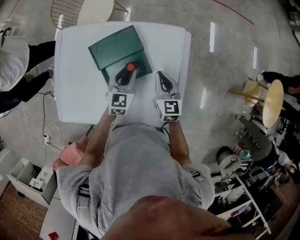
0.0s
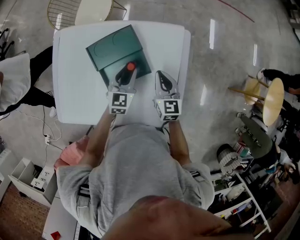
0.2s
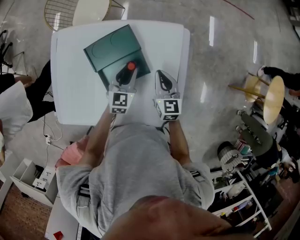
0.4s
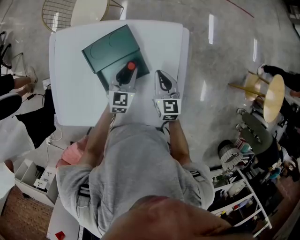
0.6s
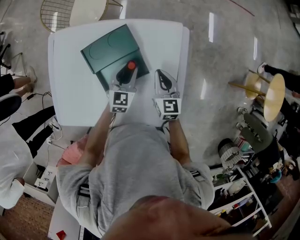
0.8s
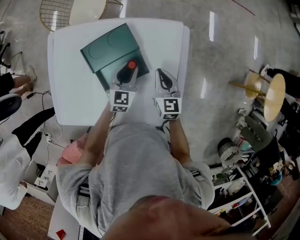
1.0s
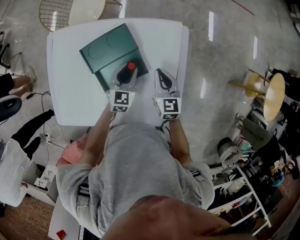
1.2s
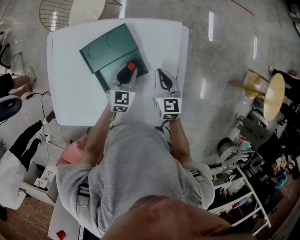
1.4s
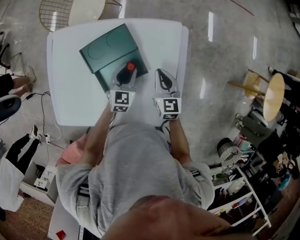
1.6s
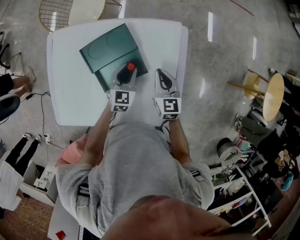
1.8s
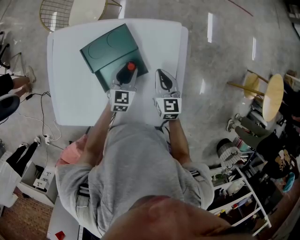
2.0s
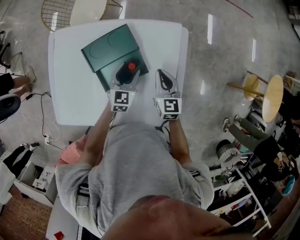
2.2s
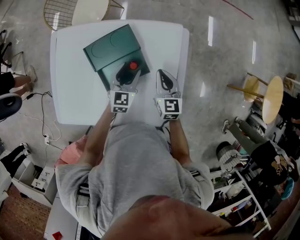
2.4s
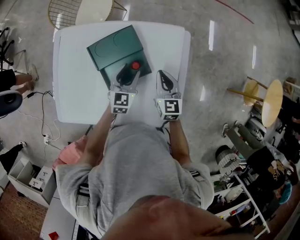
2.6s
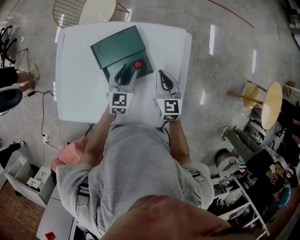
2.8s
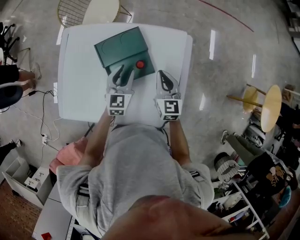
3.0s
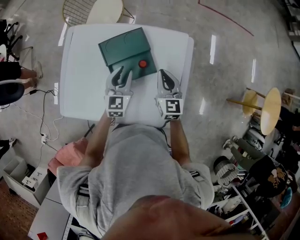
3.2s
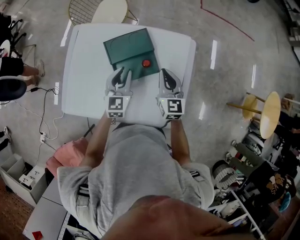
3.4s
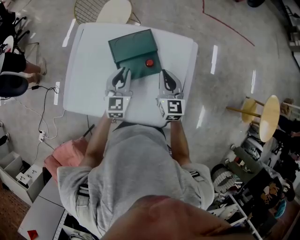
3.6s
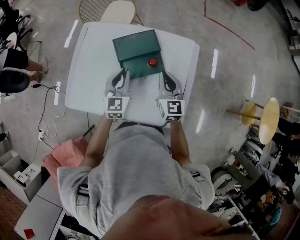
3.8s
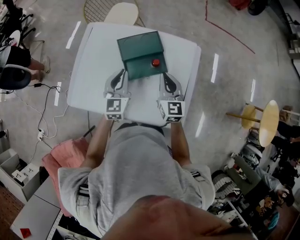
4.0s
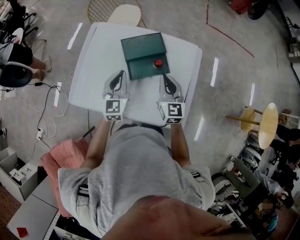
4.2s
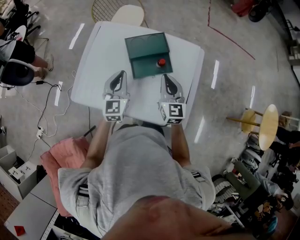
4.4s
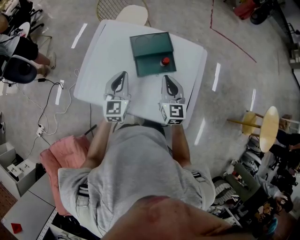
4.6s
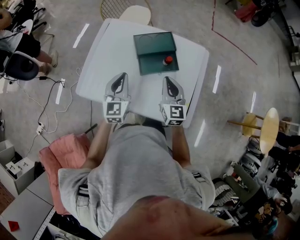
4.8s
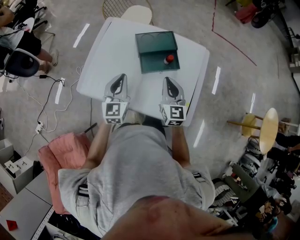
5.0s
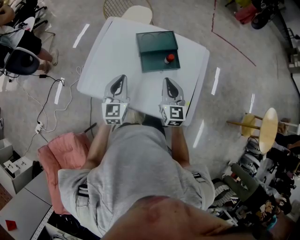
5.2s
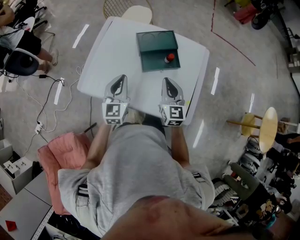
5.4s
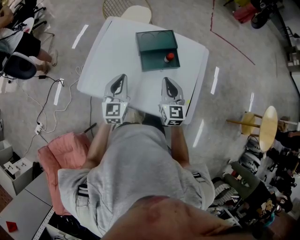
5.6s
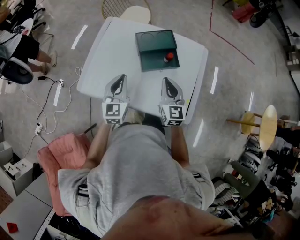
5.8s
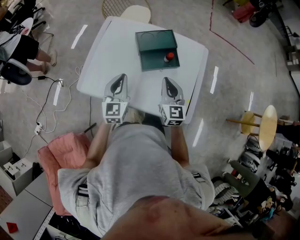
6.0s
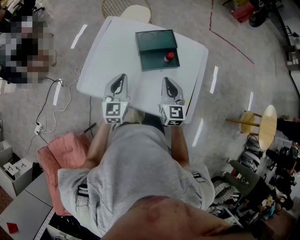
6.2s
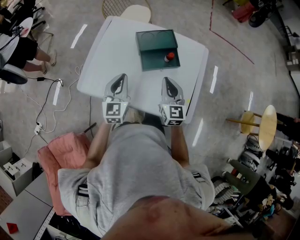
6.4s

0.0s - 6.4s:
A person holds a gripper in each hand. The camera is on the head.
0.0s - 1.6s: The left gripper shifts about 5 cm downward.
1.6s - 3.2s: The left gripper shifts some 15 cm upward, to the left and backward, and opens and closes again; the right gripper moves upward, approximately 5 cm.
3.2s - 4.8s: The left gripper heads to the left, backward and upward, covering about 25 cm, and closes. The right gripper heads backward and to the left, covering about 15 cm.
4.8s - 6.4s: There are only small adjustments of the grippers.

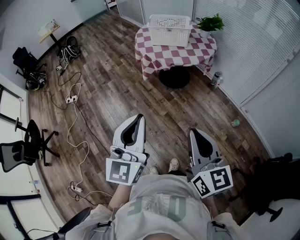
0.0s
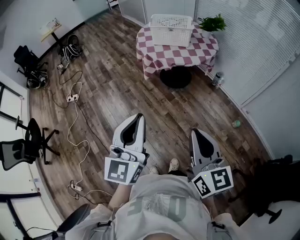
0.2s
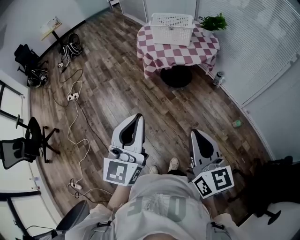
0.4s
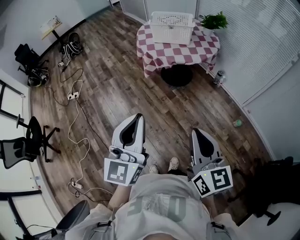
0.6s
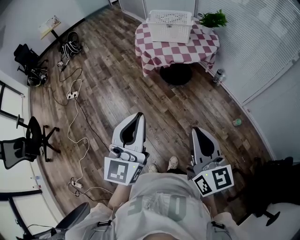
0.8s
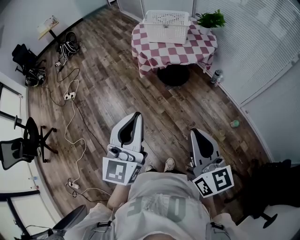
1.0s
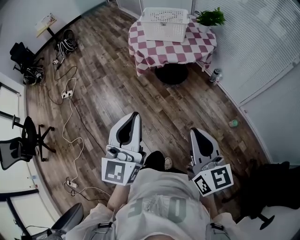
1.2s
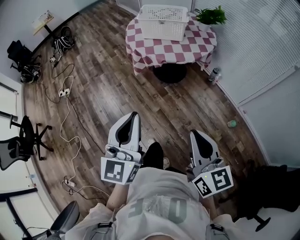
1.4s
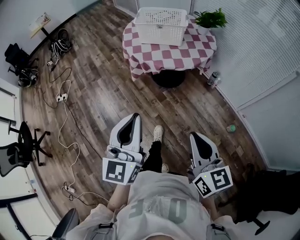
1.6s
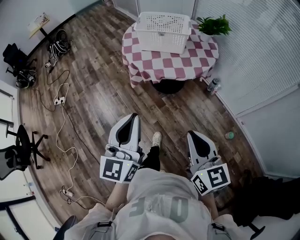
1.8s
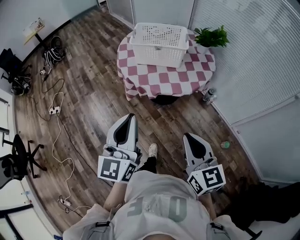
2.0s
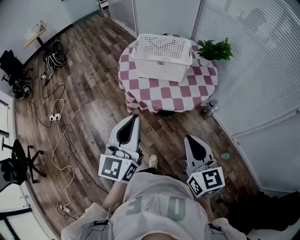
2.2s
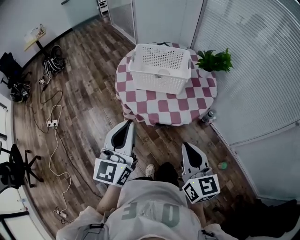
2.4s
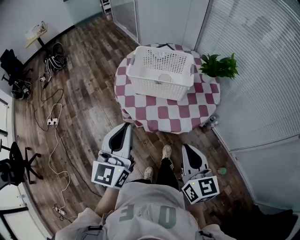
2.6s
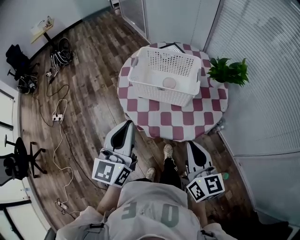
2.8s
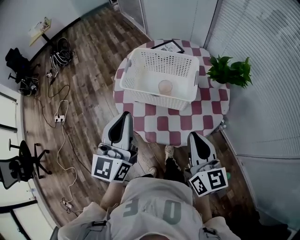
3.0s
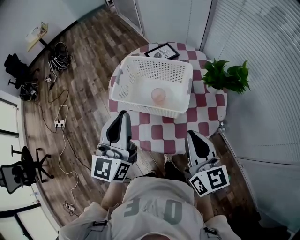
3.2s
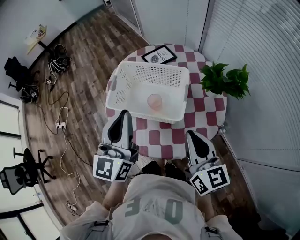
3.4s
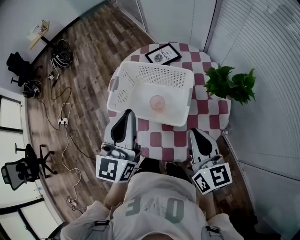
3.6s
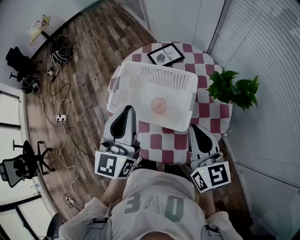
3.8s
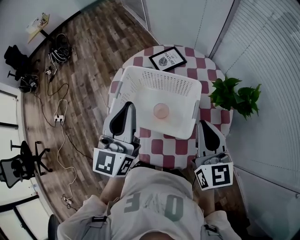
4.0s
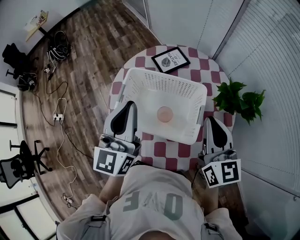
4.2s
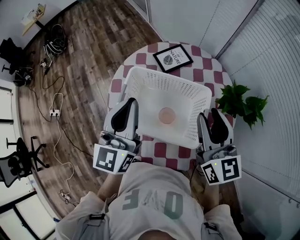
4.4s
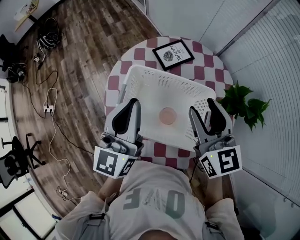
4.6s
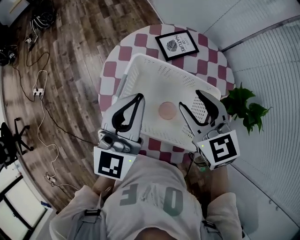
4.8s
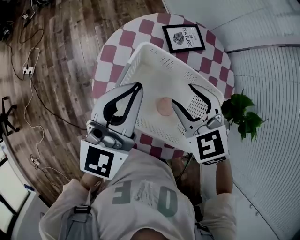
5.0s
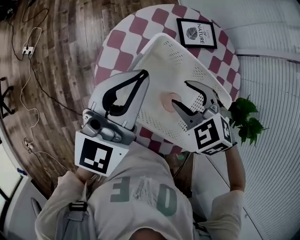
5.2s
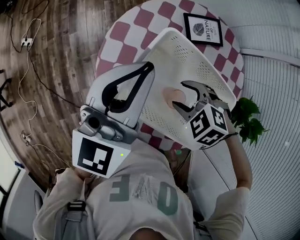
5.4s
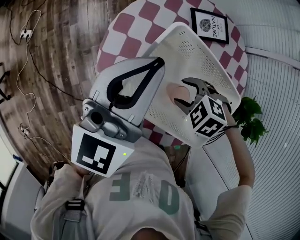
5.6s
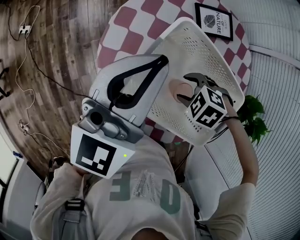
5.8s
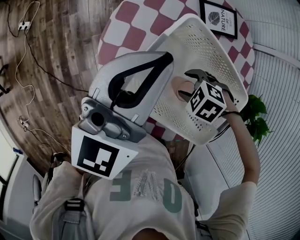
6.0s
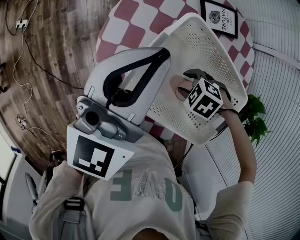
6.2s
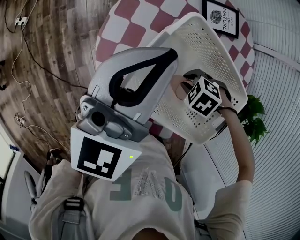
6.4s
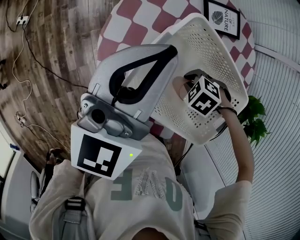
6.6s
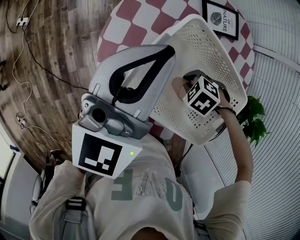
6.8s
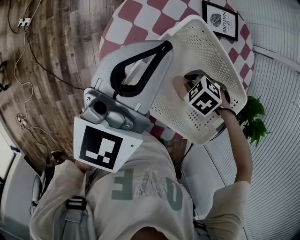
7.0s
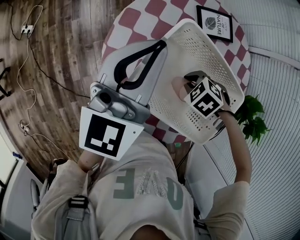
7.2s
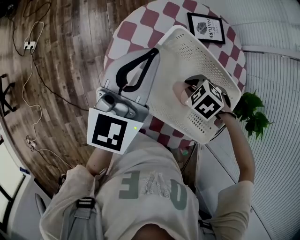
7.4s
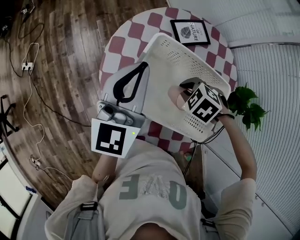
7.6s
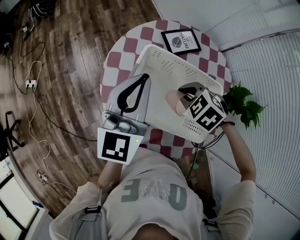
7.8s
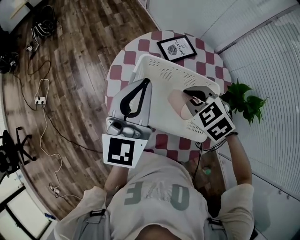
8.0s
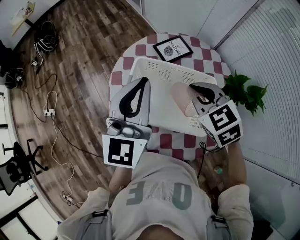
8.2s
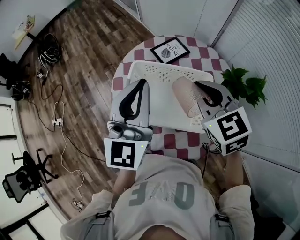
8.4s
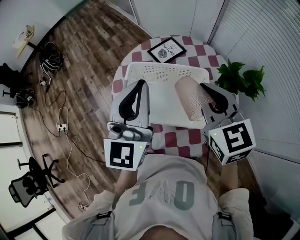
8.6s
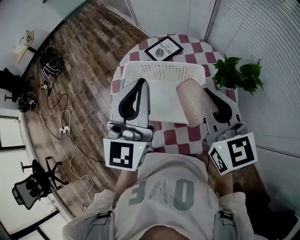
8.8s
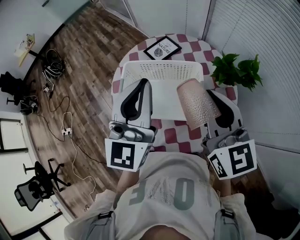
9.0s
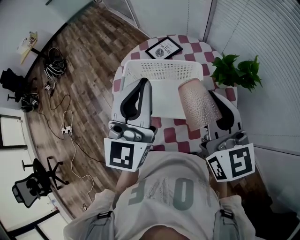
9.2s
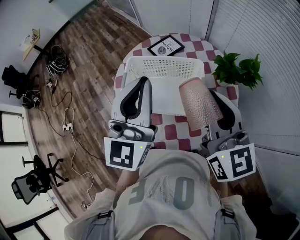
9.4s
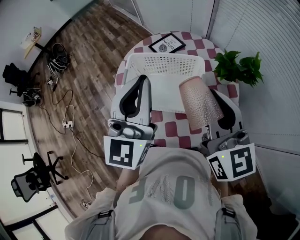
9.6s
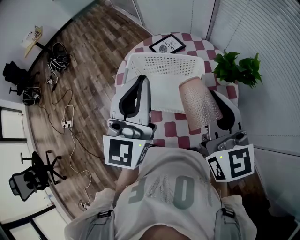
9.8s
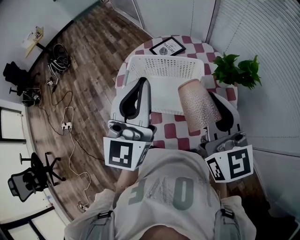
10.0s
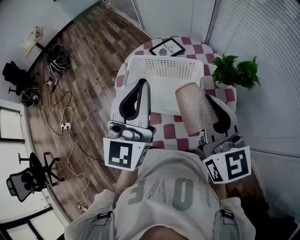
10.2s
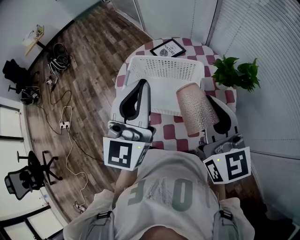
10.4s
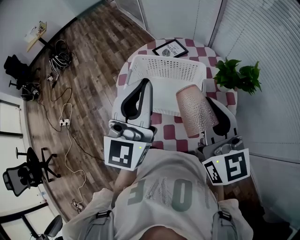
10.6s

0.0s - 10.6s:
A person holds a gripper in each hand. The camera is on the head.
0.0s - 1.6s: The left gripper moves forward and to the right, some 15 cm. Meanwhile the right gripper moves forward, to the right and downward, approximately 20 cm.
1.6s - 3.0s: The two grippers travel together, forward, approximately 50 cm.
3.0s - 4.6s: Both grippers move forward, approximately 30 cm. The right gripper opens its fingers.
4.6s - 6.0s: The left gripper ends up some 10 cm from where it was. The right gripper shifts some 30 cm downward, and tips its fingers downward by roughly 70 degrees.
6.0s - 7.6s: The right gripper travels upward by about 5 cm, turns by approximately 20 degrees, and closes up.
7.6s - 9.0s: The left gripper ends up approximately 25 cm from where it was, and turns by approximately 20 degrees; the right gripper moves upward, about 30 cm, and angles its fingers upward, by roughly 70 degrees.
9.0s - 10.6s: Both grippers travel together backward, approximately 5 cm.

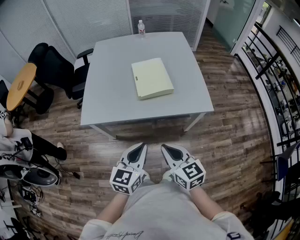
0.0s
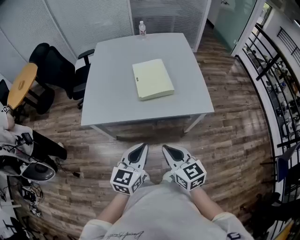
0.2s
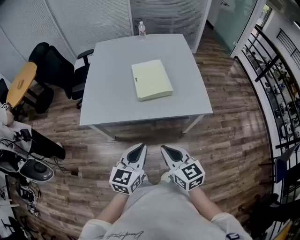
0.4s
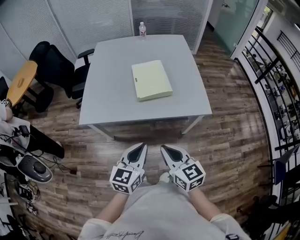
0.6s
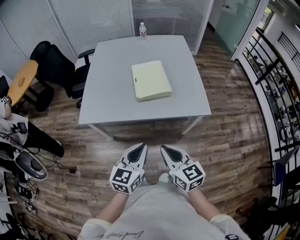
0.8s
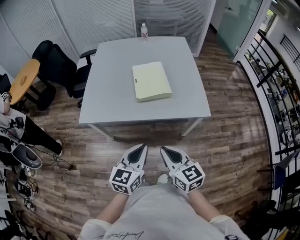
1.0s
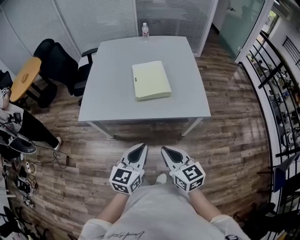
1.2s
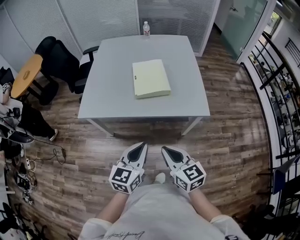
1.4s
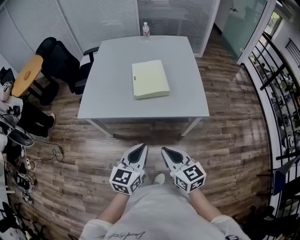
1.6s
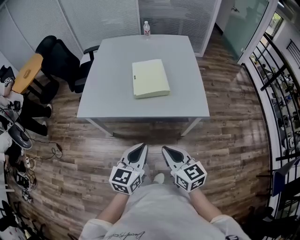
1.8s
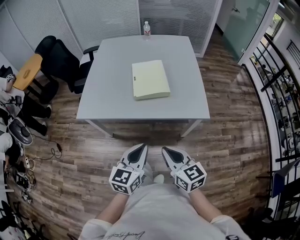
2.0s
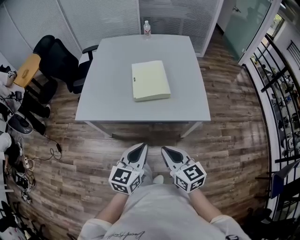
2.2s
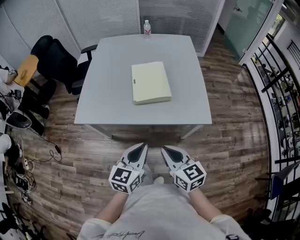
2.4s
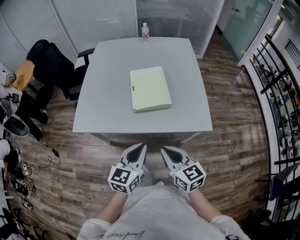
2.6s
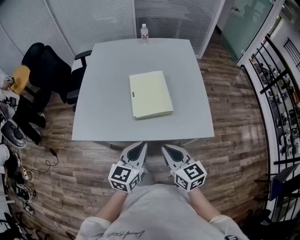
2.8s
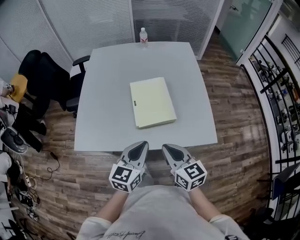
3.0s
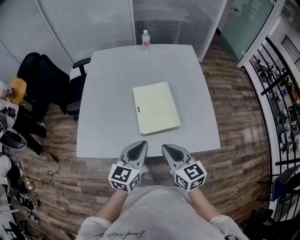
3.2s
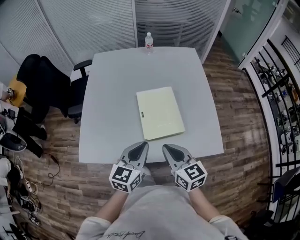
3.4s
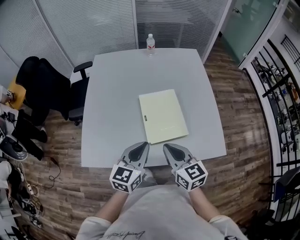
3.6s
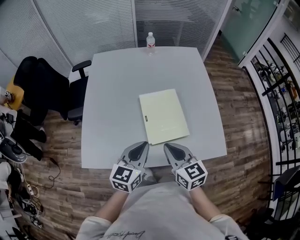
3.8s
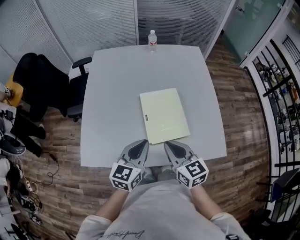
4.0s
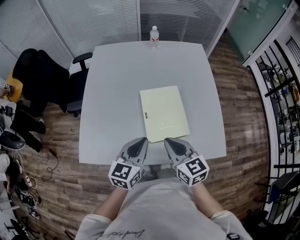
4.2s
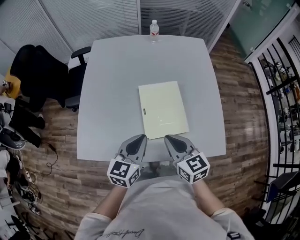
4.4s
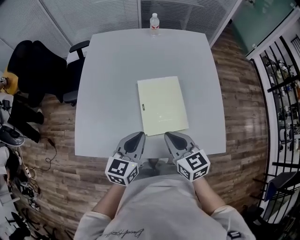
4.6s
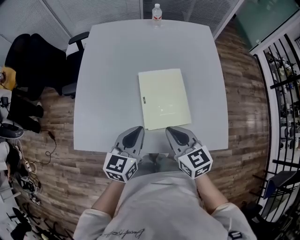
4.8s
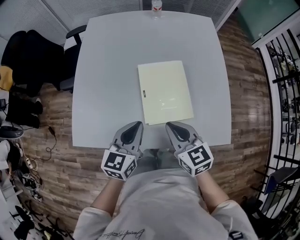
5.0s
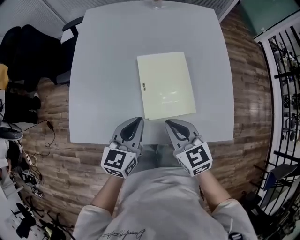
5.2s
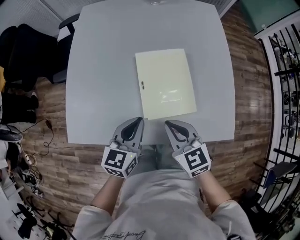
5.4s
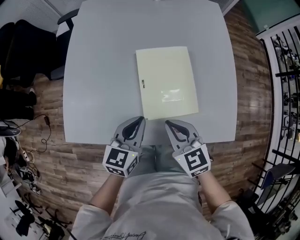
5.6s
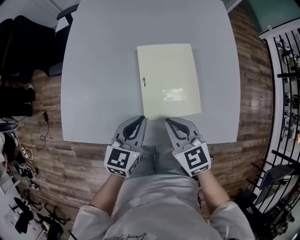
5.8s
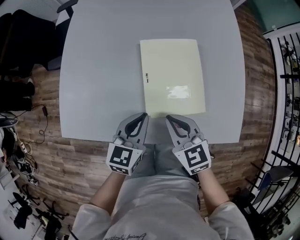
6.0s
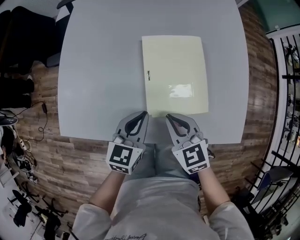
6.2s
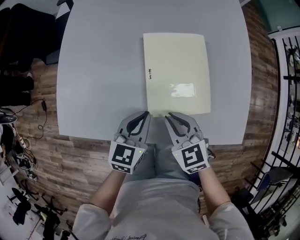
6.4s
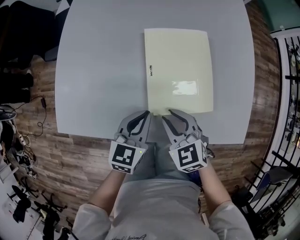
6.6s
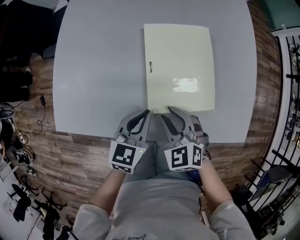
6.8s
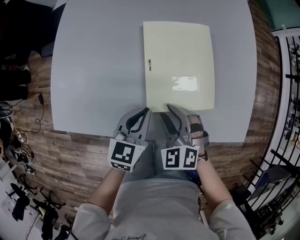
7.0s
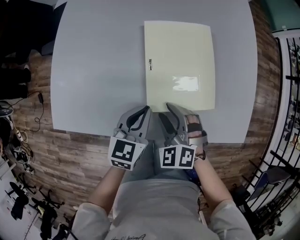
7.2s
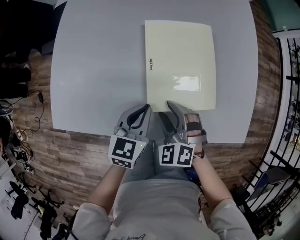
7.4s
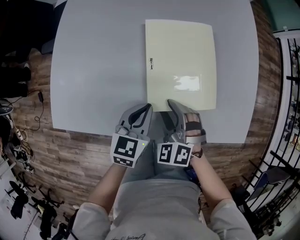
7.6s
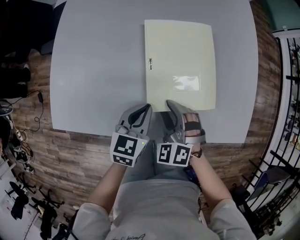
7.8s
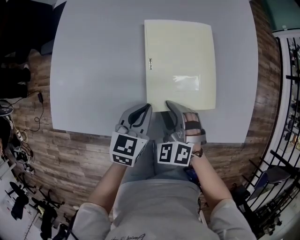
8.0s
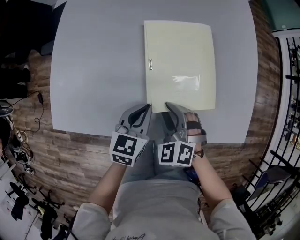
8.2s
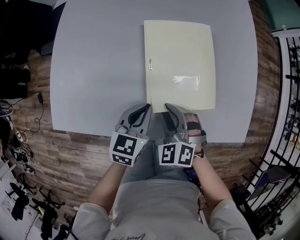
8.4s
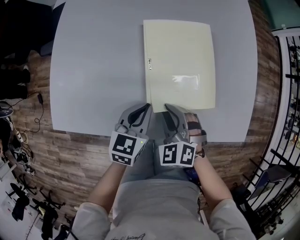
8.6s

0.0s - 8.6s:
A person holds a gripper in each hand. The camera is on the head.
0.0s - 1.4s: The left gripper shifts by roughly 5 cm. The right gripper shifts about 5 cm to the right.
1.4s - 2.8s: Both grippers travel together forward, approximately 15 cm.
2.8s - 4.4s: The grippers both shift forward by about 15 cm.
4.4s - 5.8s: The grippers both shift downward by approximately 10 cm.
5.8s - 7.2s: The grippers both shift downward by some 10 cm. The right gripper turns by roughly 40 degrees, and opens up.
7.2s - 8.6s: The right gripper closes up.
